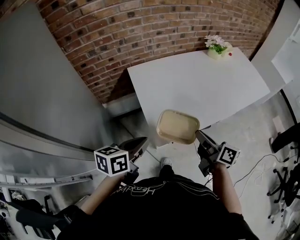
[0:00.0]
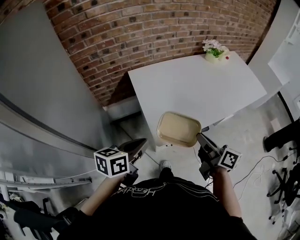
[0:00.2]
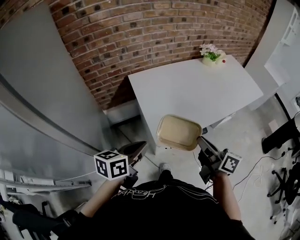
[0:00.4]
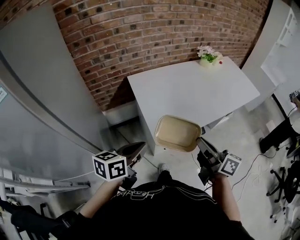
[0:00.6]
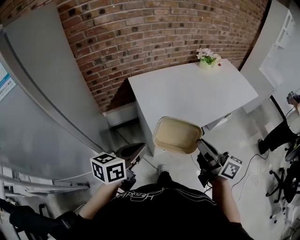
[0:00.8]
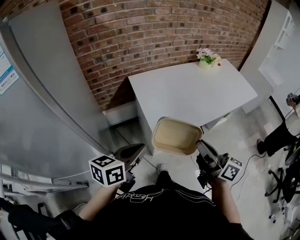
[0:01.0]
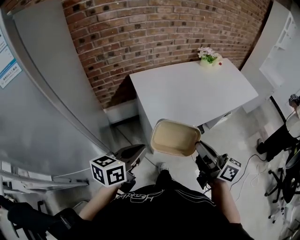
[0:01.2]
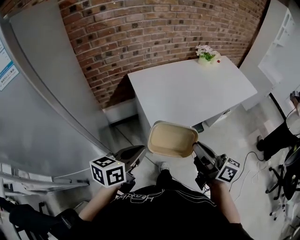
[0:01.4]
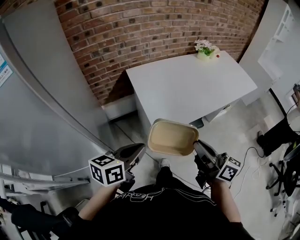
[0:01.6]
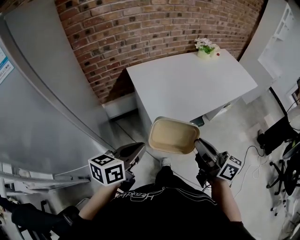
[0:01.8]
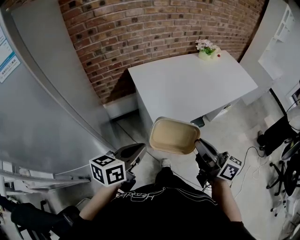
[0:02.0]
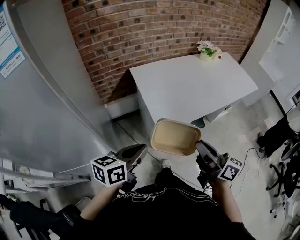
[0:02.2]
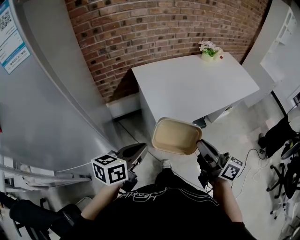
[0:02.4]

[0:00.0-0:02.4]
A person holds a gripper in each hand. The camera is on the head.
0:00.0 to 0:01.2: The grippers both shift backward and upward by roughly 15 cm.
0:01.2 to 0:02.4: The grippers make only small movements.

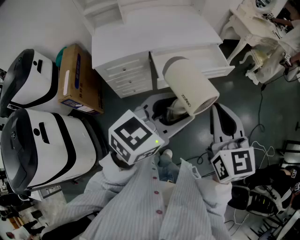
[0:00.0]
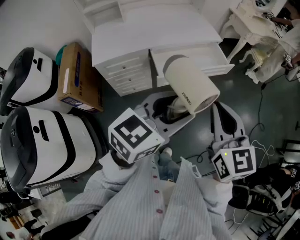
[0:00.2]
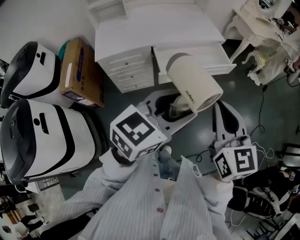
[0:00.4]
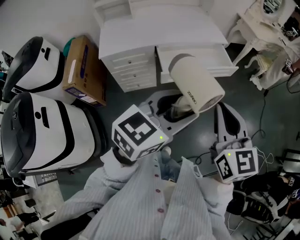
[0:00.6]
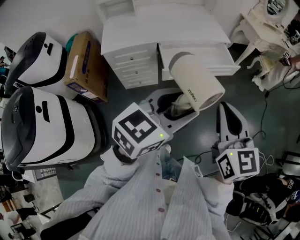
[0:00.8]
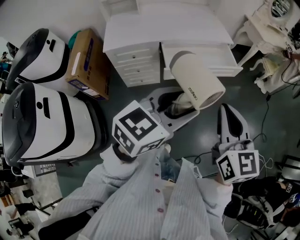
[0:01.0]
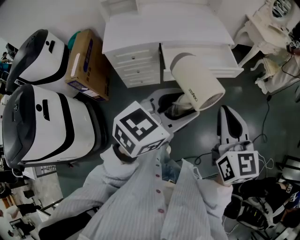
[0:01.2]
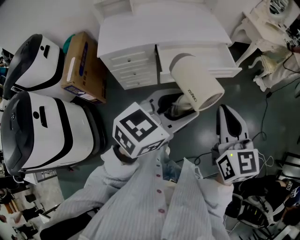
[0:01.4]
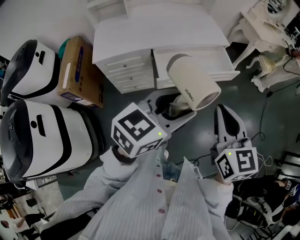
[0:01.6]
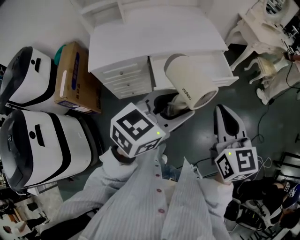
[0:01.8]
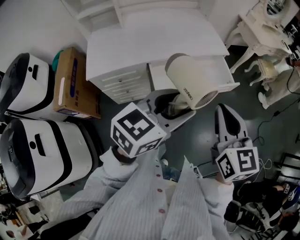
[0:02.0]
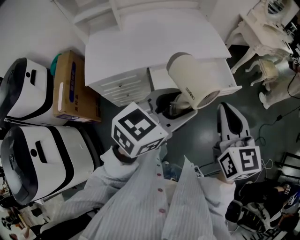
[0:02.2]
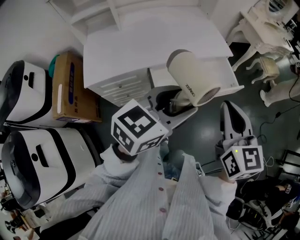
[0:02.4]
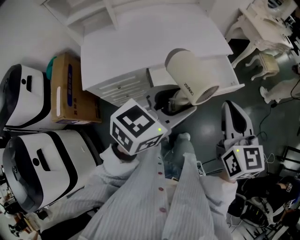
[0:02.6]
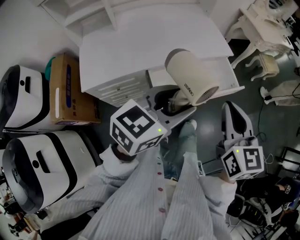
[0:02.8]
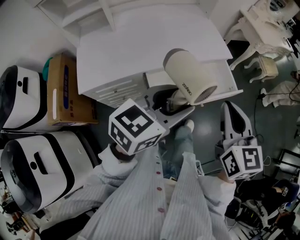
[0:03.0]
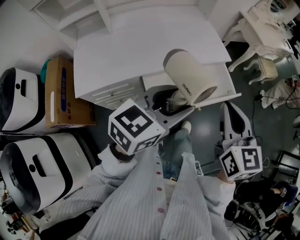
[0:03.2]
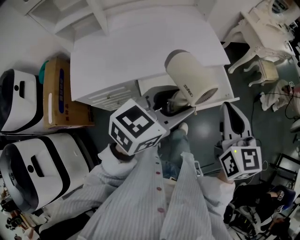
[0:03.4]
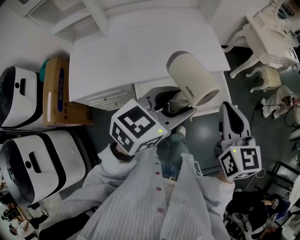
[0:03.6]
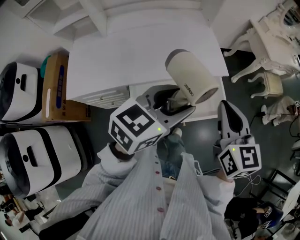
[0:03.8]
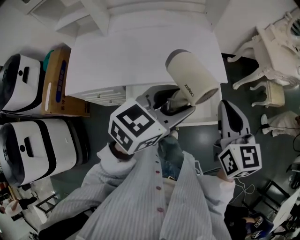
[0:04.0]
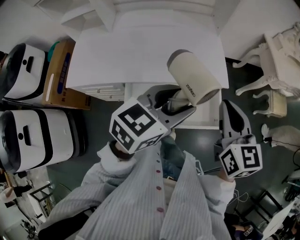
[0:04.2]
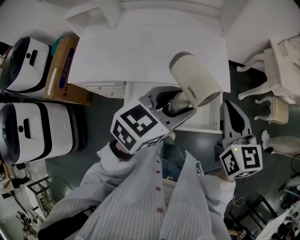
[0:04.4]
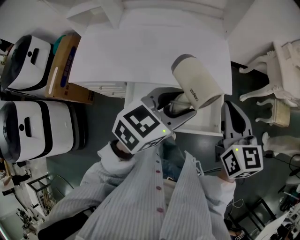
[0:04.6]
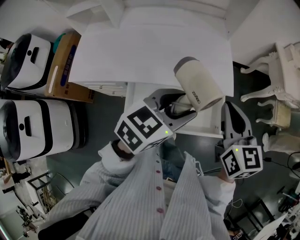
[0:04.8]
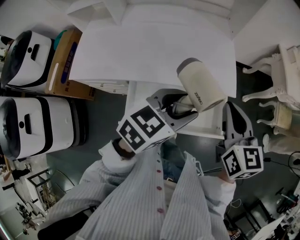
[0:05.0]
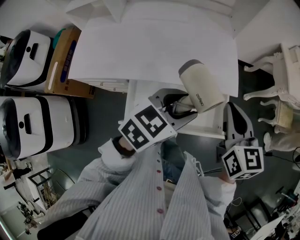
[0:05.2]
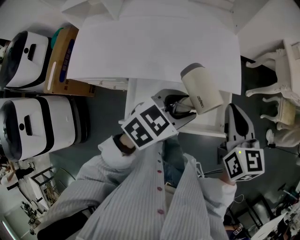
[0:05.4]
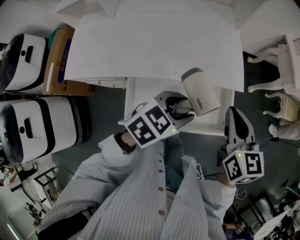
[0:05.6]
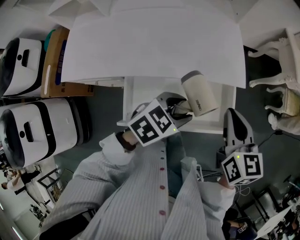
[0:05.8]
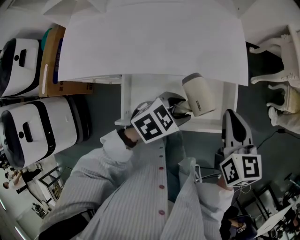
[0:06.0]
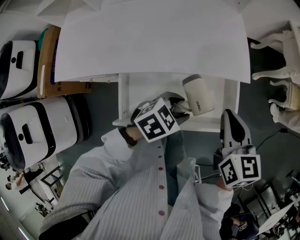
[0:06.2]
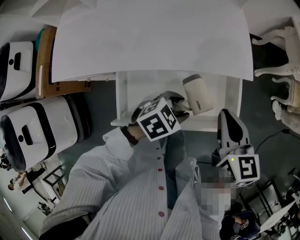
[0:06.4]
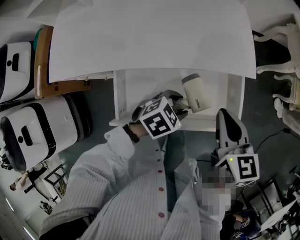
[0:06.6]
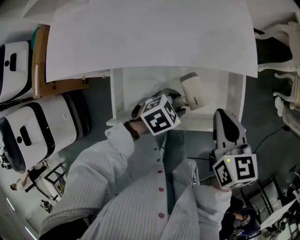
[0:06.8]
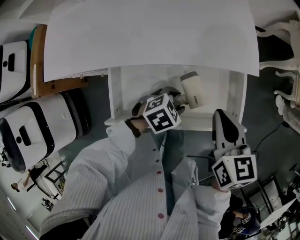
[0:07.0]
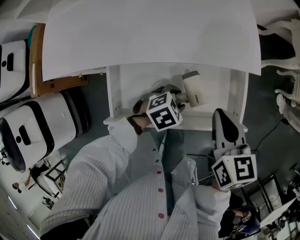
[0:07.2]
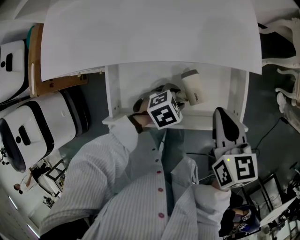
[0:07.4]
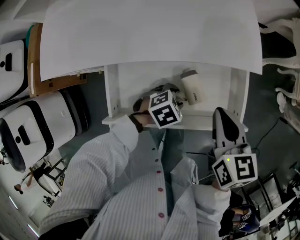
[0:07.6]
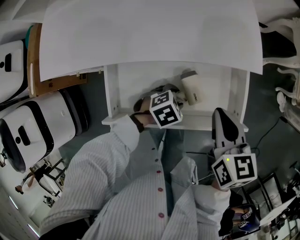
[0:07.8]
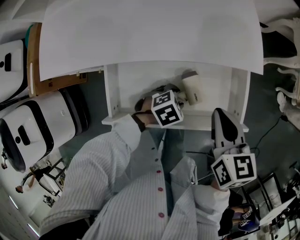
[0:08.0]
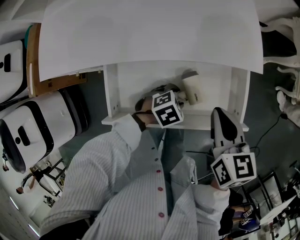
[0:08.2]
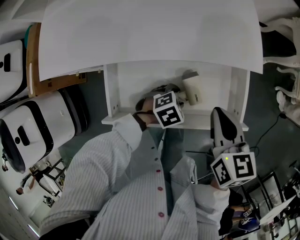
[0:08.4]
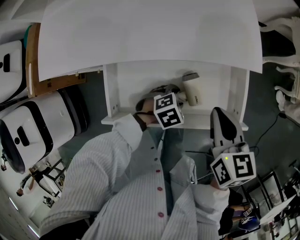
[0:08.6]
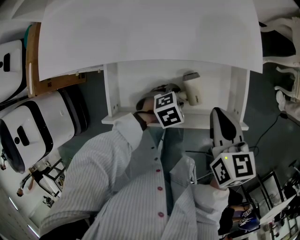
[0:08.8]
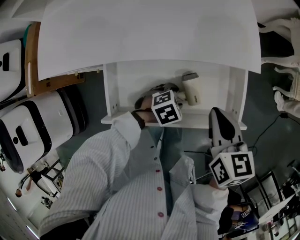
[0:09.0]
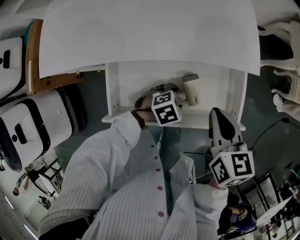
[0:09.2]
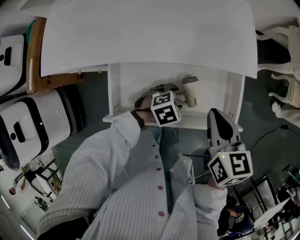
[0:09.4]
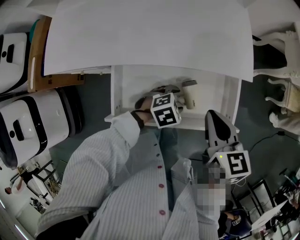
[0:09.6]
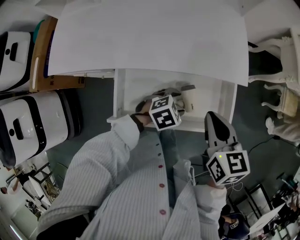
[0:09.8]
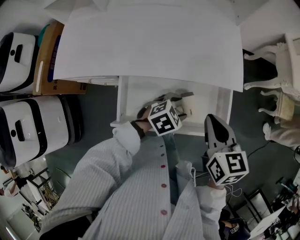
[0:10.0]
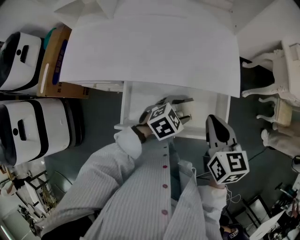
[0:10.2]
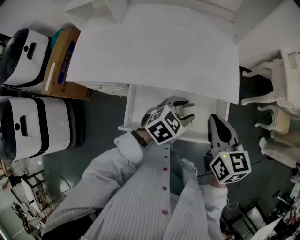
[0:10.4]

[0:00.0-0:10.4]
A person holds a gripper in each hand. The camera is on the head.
0:00.0 to 0:01.4: The right gripper changes place by about 5 cm.
0:01.4 to 0:03.0: The right gripper heads forward, covering some 25 cm, while the left gripper is displaced forward and to the left by roughly 25 cm.
0:03.0 to 0:04.4: The right gripper moves forward, roughly 25 cm, and rotates roughly 20 degrees. The left gripper moves forward and to the right, roughly 25 cm.
0:04.4 to 0:06.0: The right gripper heads downward, covering some 10 cm, while the left gripper shifts roughly 20 cm downward, and rotates about 30 degrees.
0:06.0 to 0:07.4: The right gripper goes about 10 cm downward; the left gripper moves downward, roughly 20 cm.
0:07.4 to 0:09.0: The grippers stay close to where they were, moving slightly.
0:09.0 to 0:10.4: The left gripper travels upward by roughly 25 cm, and swivels about 30 degrees. Meanwhile the right gripper shifts about 15 cm upward.

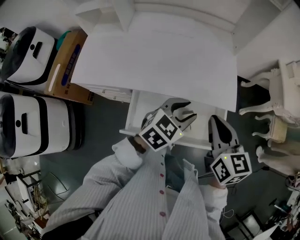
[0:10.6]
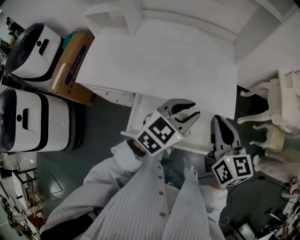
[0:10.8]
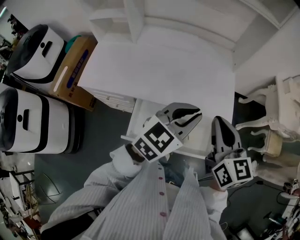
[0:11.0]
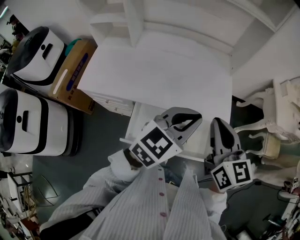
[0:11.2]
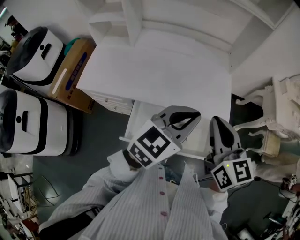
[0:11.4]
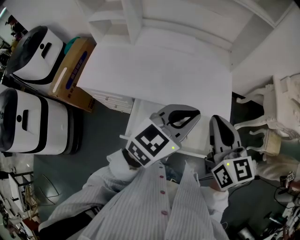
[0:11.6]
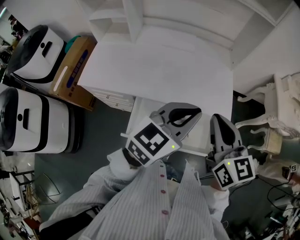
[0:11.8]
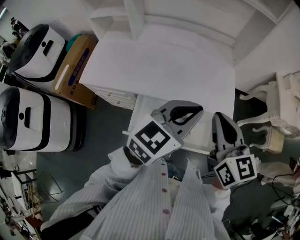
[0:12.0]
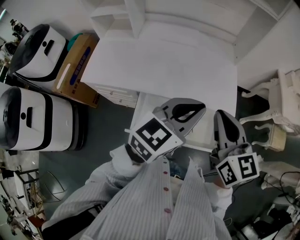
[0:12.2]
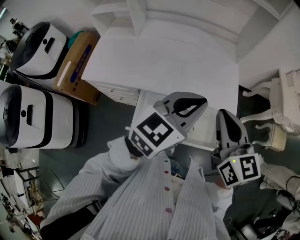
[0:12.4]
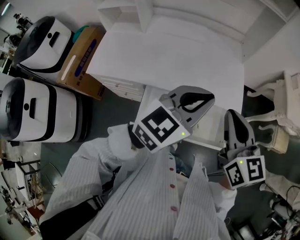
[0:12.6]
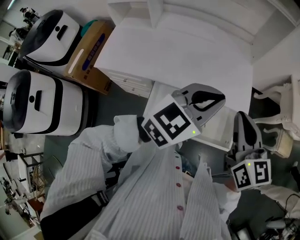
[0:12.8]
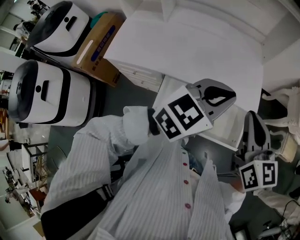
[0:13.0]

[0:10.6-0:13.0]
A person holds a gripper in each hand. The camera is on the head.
0:10.6 to 0:11.8: The right gripper moves upward, about 10 cm. The left gripper moves upward, some 15 cm, rotates about 20 degrees, and closes up.
0:11.8 to 0:13.0: There are only small adjustments of the grippers.

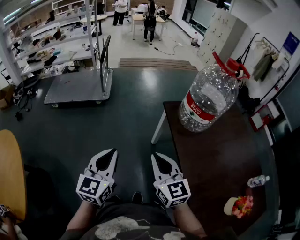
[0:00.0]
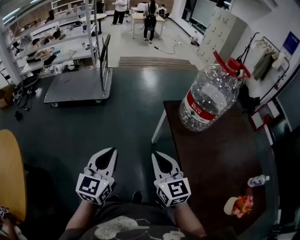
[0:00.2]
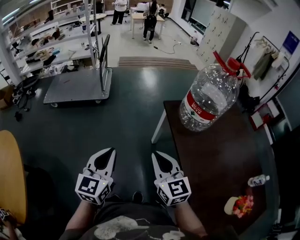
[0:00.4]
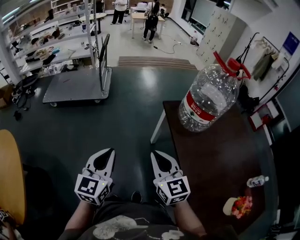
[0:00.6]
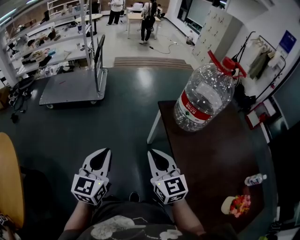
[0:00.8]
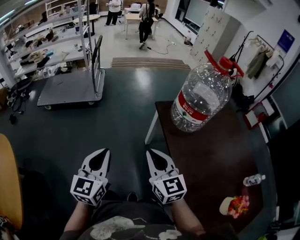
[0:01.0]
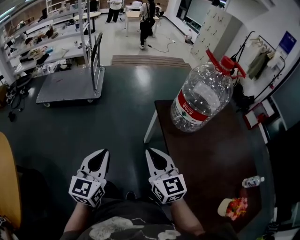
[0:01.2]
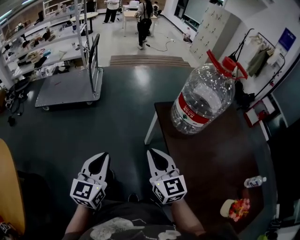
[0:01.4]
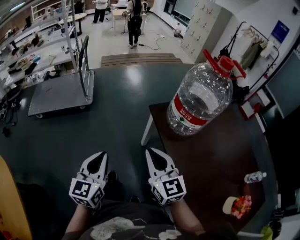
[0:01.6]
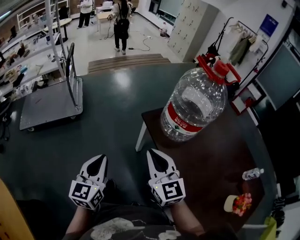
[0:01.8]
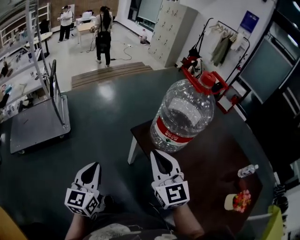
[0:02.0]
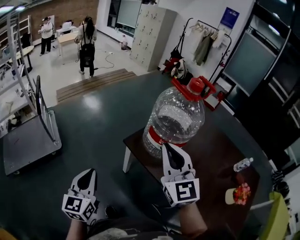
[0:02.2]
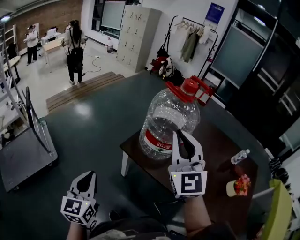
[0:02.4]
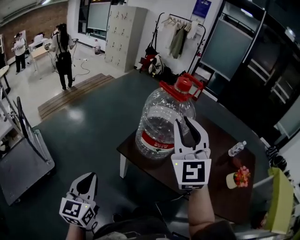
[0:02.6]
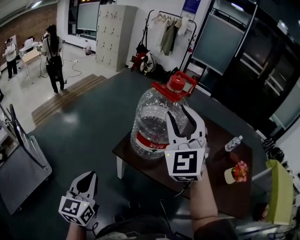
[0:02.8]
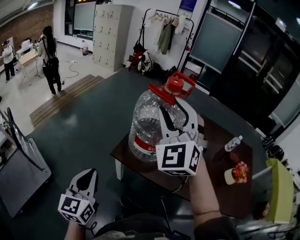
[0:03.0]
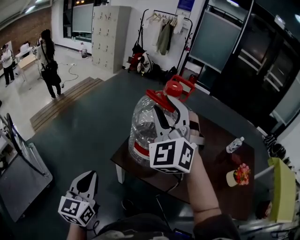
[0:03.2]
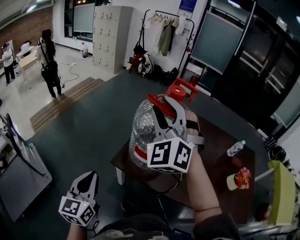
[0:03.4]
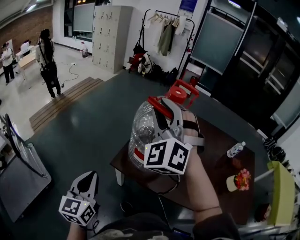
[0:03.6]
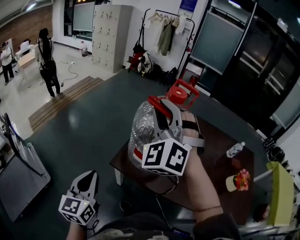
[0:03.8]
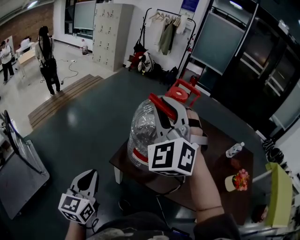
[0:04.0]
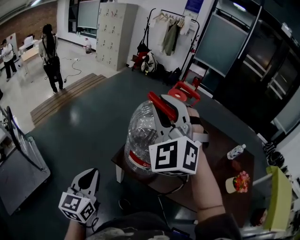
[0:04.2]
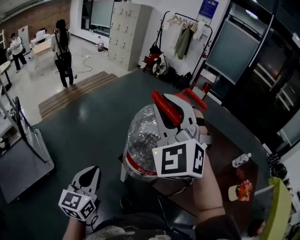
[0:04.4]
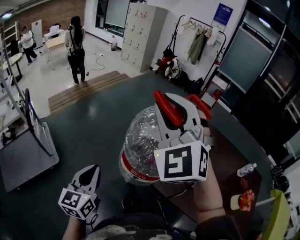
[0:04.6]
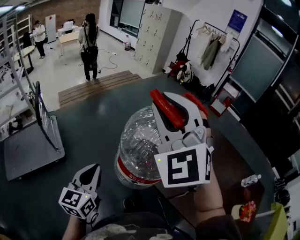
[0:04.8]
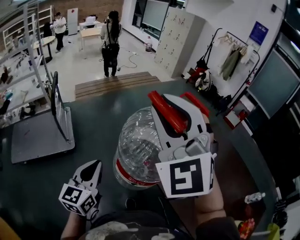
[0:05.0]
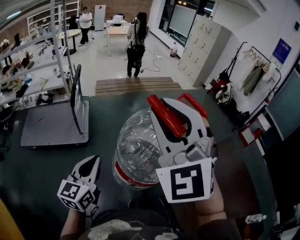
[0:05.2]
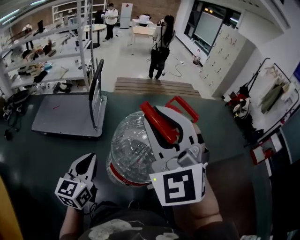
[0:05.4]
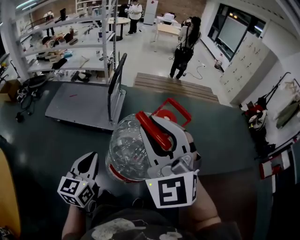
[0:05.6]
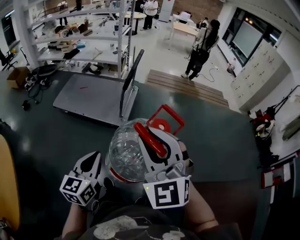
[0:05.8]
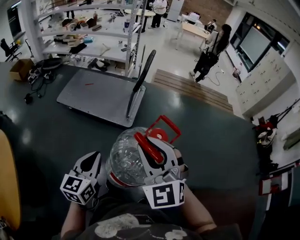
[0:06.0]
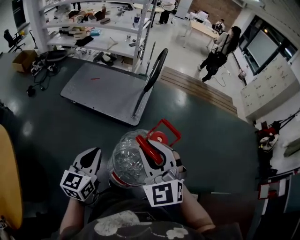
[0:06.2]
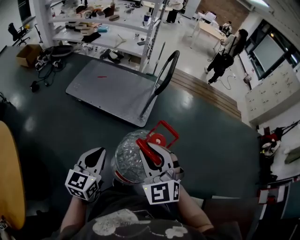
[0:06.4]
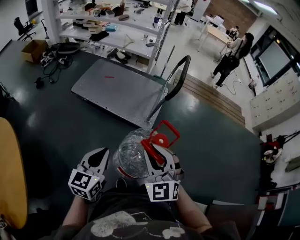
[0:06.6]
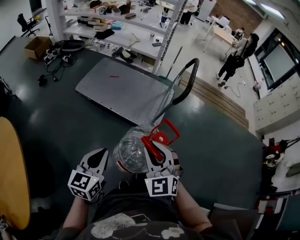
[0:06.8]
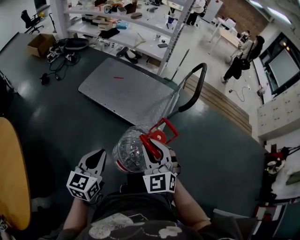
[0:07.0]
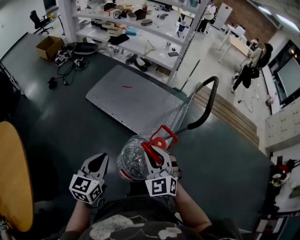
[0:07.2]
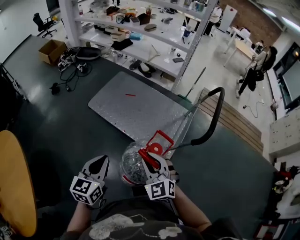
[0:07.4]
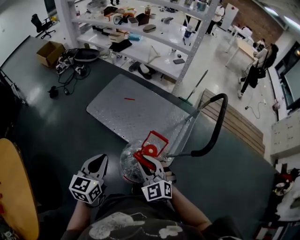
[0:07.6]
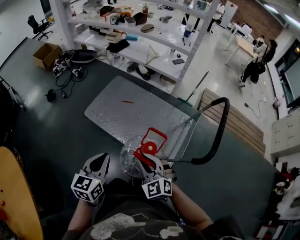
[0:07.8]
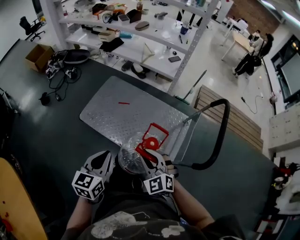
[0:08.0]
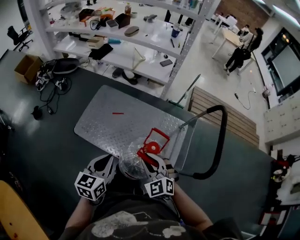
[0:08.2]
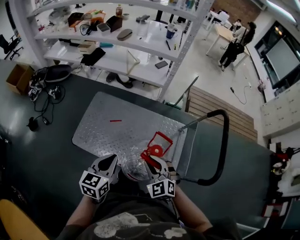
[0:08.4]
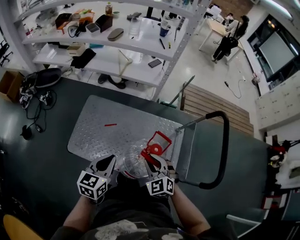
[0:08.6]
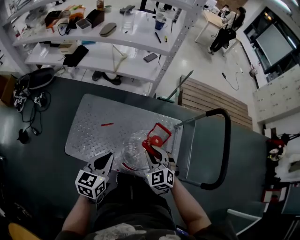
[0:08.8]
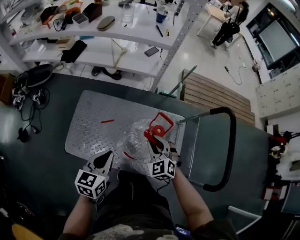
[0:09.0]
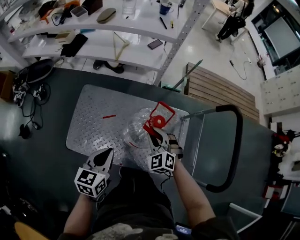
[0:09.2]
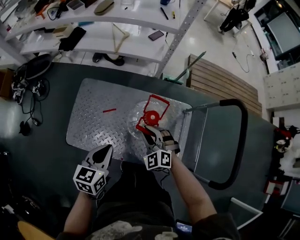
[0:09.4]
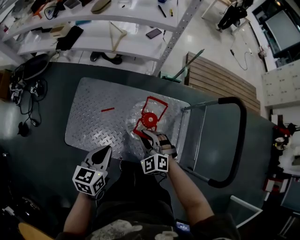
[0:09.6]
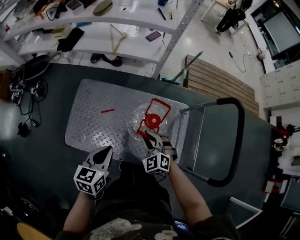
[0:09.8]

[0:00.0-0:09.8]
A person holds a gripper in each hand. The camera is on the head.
0:00.0 to 0:01.4: The right gripper shifts about 5 cm forward; the left gripper changes place by approximately 5 cm.
0:01.4 to 0:02.8: The right gripper shifts by roughly 35 cm, changes its angle by about 70 degrees, and opens its fingers. The left gripper moves some 30 cm, and turns by about 40 degrees.
0:02.8 to 0:04.2: The left gripper shifts approximately 10 cm forward; the right gripper heads forward and to the left, covering some 10 cm, and changes its angle by some 20 degrees.
0:04.2 to 0:05.6: The left gripper moves roughly 30 cm, and changes its angle by about 60 degrees; the right gripper changes place by some 40 cm, and changes its angle by approximately 70 degrees.
0:05.6 to 0:07.0: The right gripper is displaced to the left, forward and downward by approximately 50 cm, and changes its angle by about 20 degrees, while the left gripper goes approximately 40 cm to the left and forward.
0:07.0 to 0:08.4: The pair of grippers is taken forward, roughly 50 cm.
0:08.4 to 0:09.8: Both grippers move forward and downward, about 20 cm.
